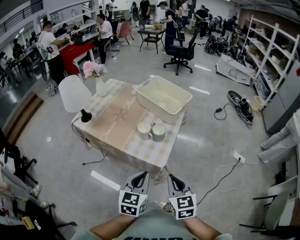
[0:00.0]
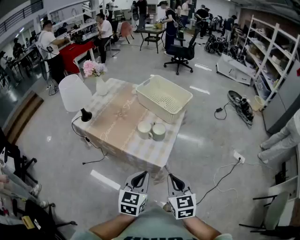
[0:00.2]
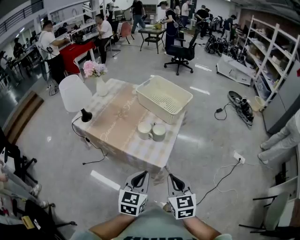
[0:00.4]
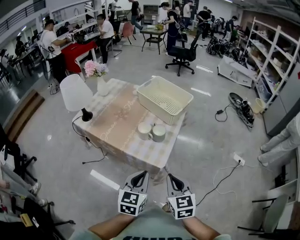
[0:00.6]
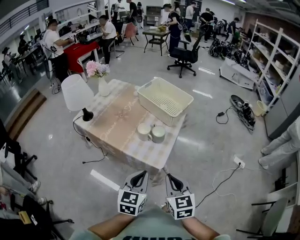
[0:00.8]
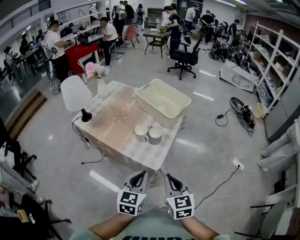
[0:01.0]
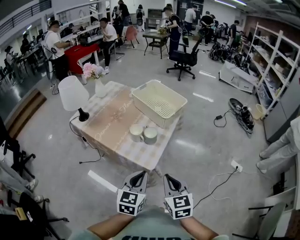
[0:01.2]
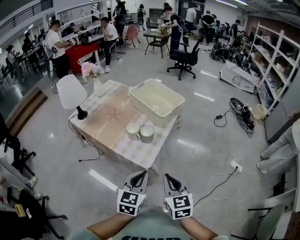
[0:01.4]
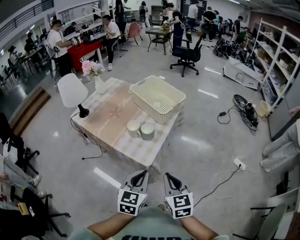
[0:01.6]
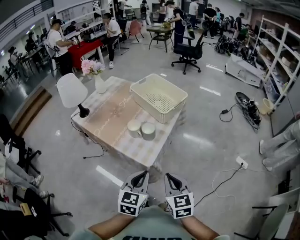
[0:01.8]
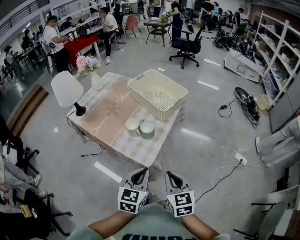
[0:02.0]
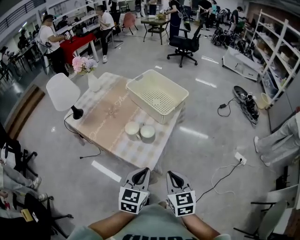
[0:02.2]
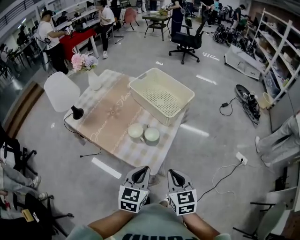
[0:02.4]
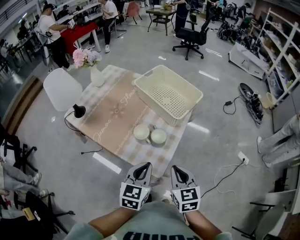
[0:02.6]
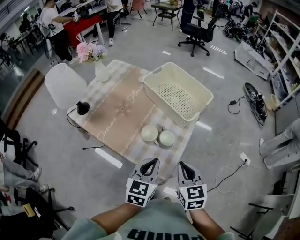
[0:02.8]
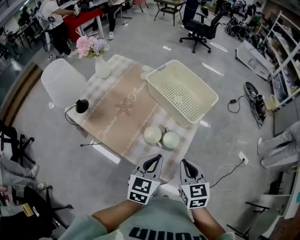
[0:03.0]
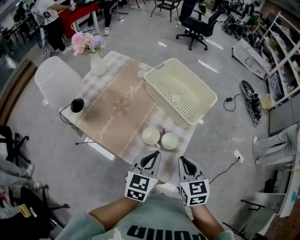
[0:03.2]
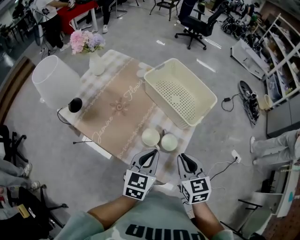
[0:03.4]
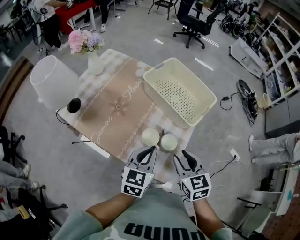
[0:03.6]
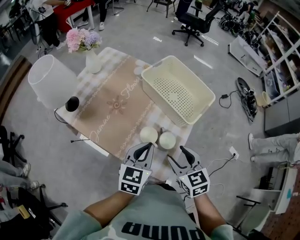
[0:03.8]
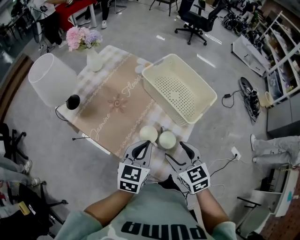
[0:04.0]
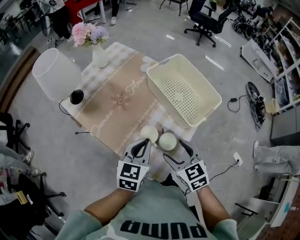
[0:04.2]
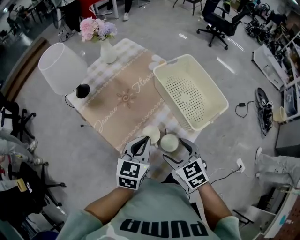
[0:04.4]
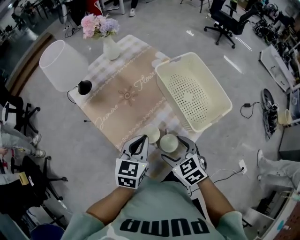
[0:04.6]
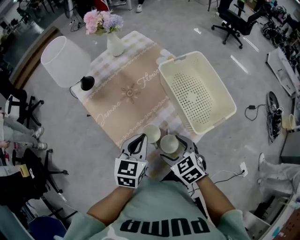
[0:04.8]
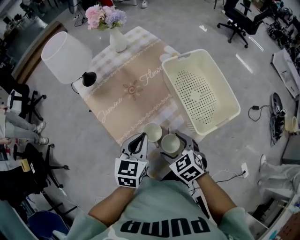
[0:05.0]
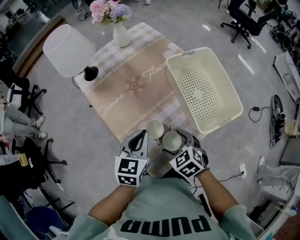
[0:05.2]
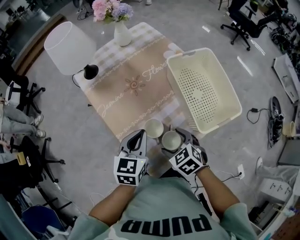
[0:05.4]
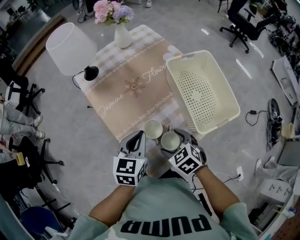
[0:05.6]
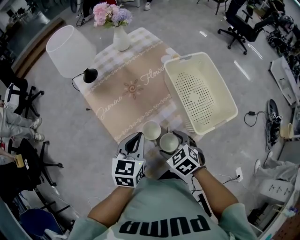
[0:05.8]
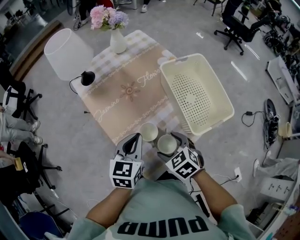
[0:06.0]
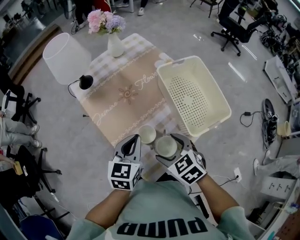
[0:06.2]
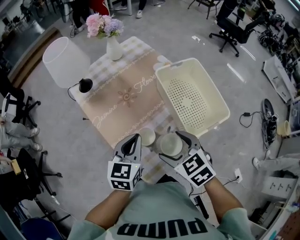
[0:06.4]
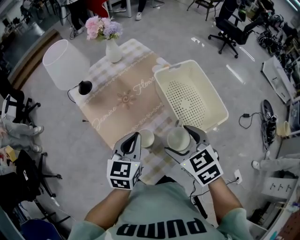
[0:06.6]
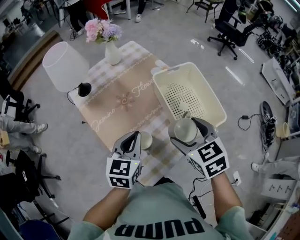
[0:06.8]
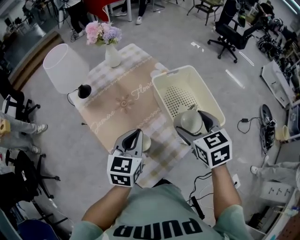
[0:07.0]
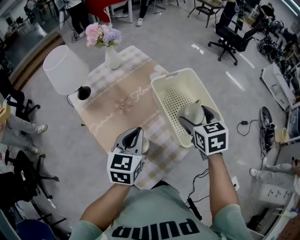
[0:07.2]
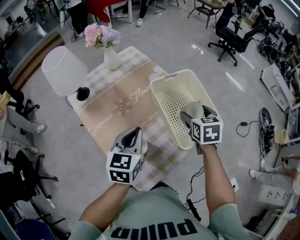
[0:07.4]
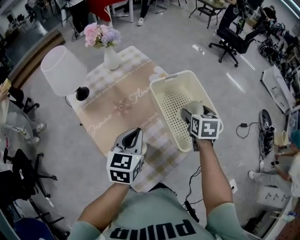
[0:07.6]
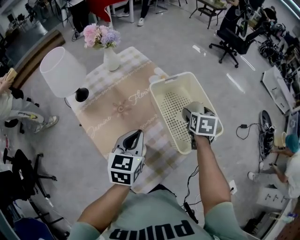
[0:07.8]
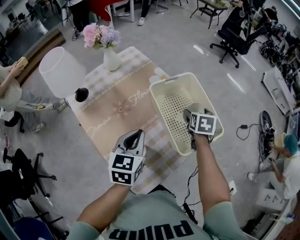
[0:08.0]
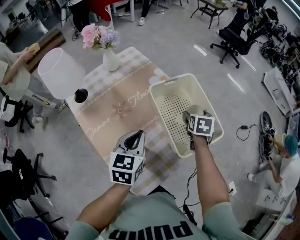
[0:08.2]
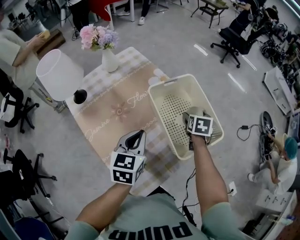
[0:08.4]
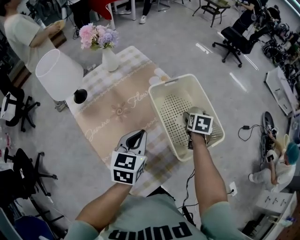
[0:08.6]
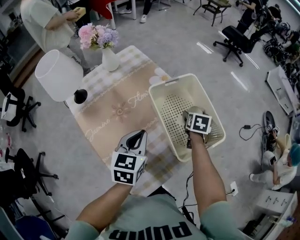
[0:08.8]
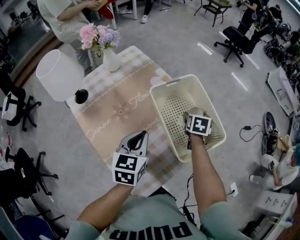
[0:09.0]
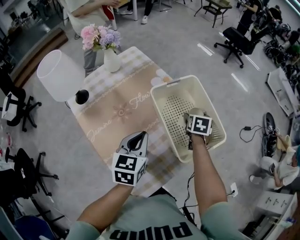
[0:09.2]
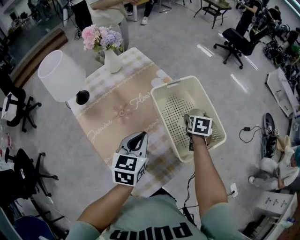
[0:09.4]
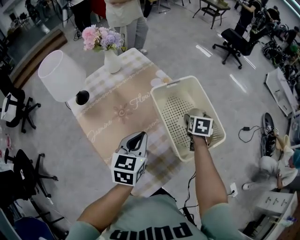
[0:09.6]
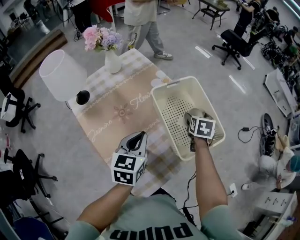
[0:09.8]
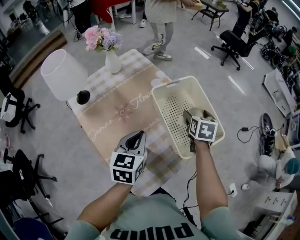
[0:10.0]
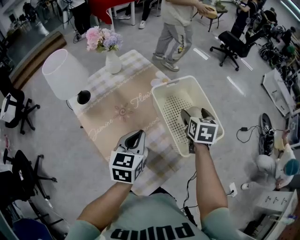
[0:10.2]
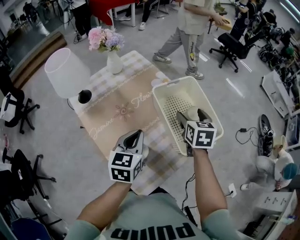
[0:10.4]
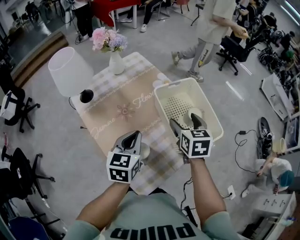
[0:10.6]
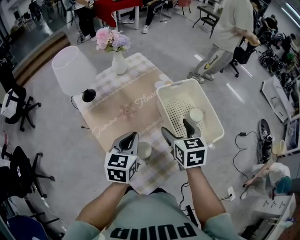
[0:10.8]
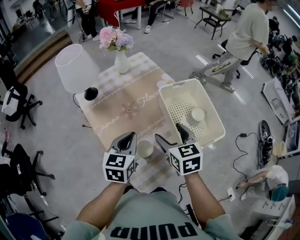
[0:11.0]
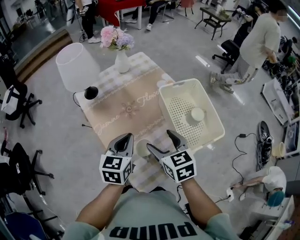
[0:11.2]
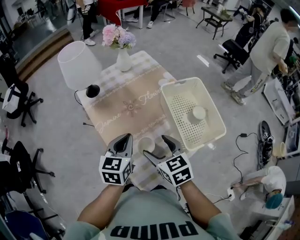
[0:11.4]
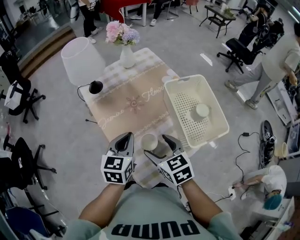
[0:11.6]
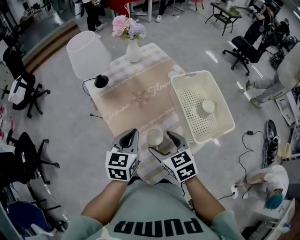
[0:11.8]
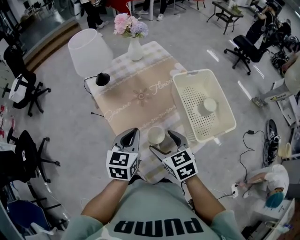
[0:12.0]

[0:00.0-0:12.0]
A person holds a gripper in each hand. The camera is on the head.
0:00.0 to 0:01.6: The two grippers go roughly 10 cm to the right.
0:01.6 to 0:03.0: The right gripper goes approximately 20 cm forward. Meanwhile the left gripper shifts roughly 20 cm forward and to the left.
0:03.0 to 0:04.4: The grippers both shift forward by roughly 10 cm. The right gripper swivels about 40 degrees, and opens.
0:04.4 to 0:06.0: The right gripper changes its angle by roughly 20 degrees.
0:06.0 to 0:07.6: The left gripper goes some 10 cm forward, to the right and upward, while the right gripper heads forward and to the right, covering roughly 30 cm, and rotates approximately 50 degrees.
0:07.6 to 0:09.0: The right gripper moves downward and forward, roughly 10 cm.
0:09.0 to 0:10.4: The right gripper is displaced upward, backward and to the left by some 15 cm, and rotates roughly 20 degrees.
0:10.4 to 0:12.0: The right gripper is displaced to the left and backward by some 25 cm, and rotates approximately 40 degrees, while the left gripper goes approximately 10 cm to the left and backward.

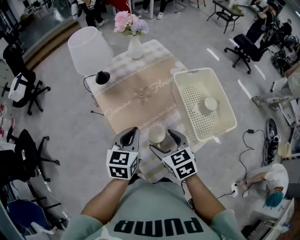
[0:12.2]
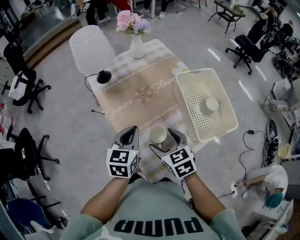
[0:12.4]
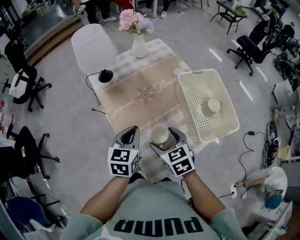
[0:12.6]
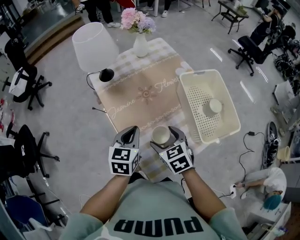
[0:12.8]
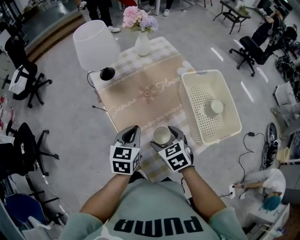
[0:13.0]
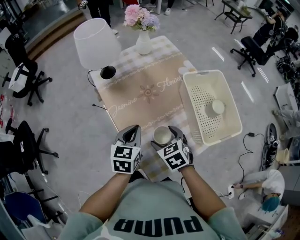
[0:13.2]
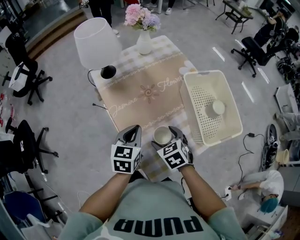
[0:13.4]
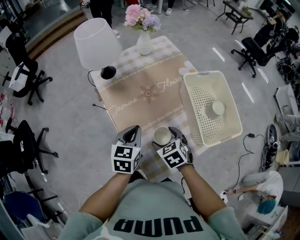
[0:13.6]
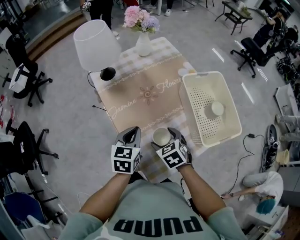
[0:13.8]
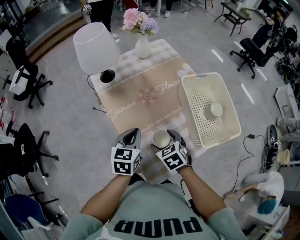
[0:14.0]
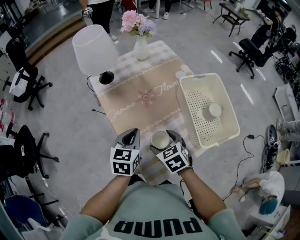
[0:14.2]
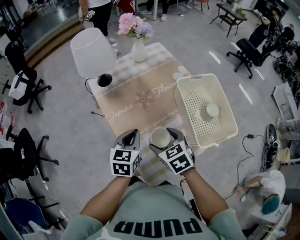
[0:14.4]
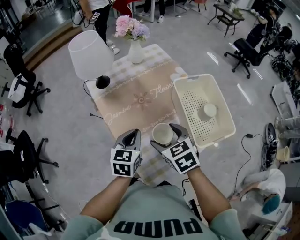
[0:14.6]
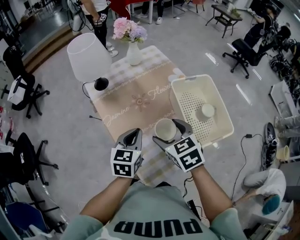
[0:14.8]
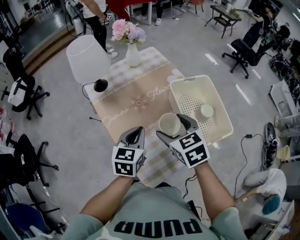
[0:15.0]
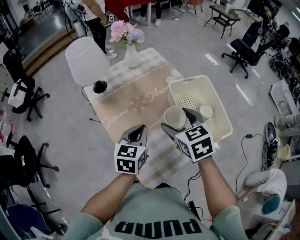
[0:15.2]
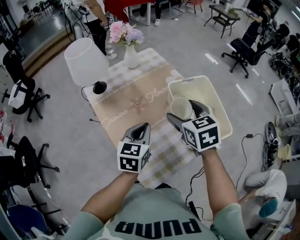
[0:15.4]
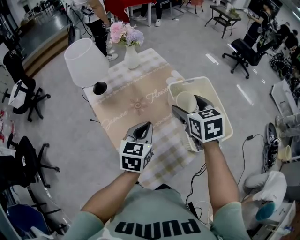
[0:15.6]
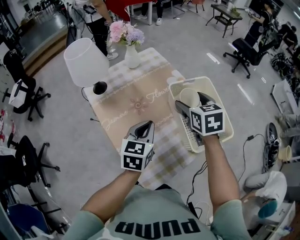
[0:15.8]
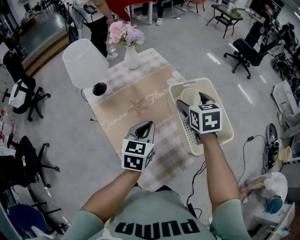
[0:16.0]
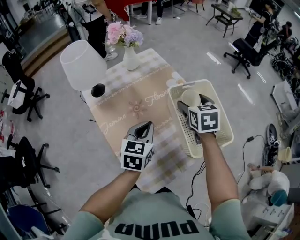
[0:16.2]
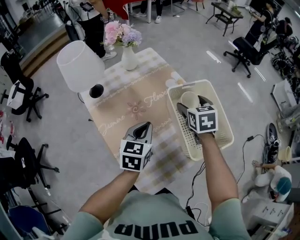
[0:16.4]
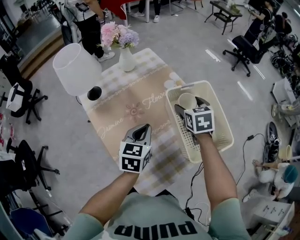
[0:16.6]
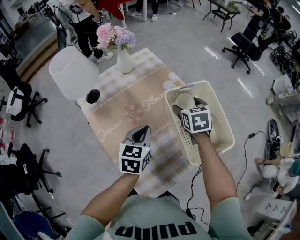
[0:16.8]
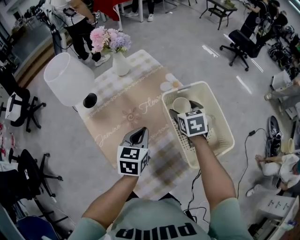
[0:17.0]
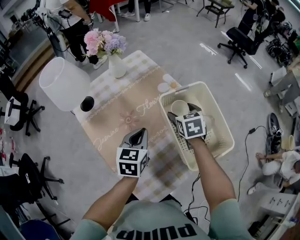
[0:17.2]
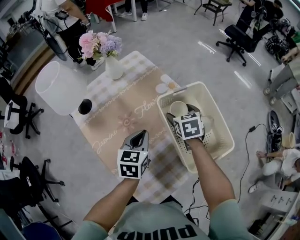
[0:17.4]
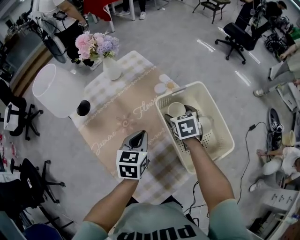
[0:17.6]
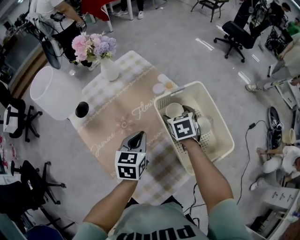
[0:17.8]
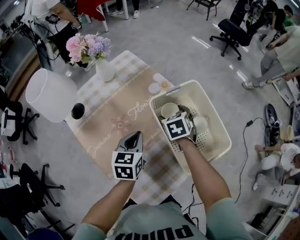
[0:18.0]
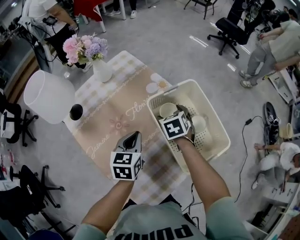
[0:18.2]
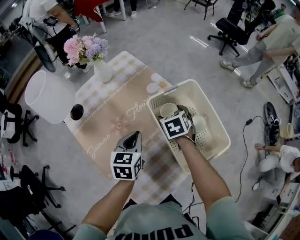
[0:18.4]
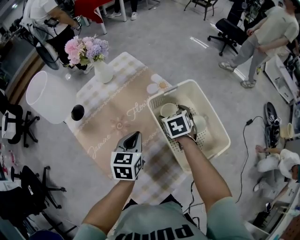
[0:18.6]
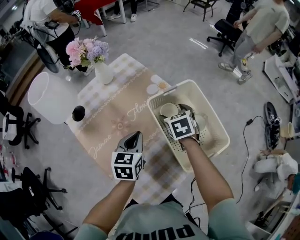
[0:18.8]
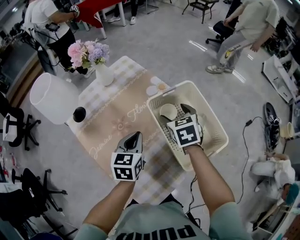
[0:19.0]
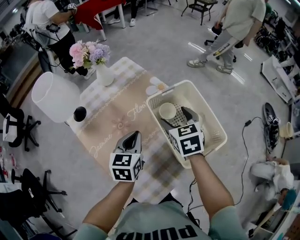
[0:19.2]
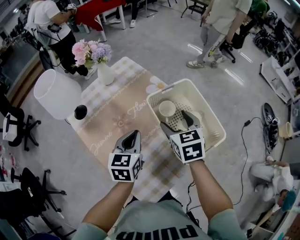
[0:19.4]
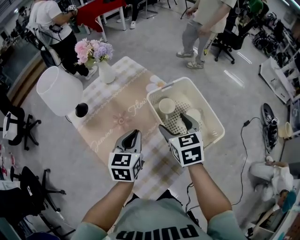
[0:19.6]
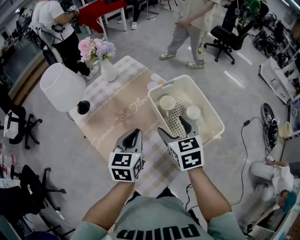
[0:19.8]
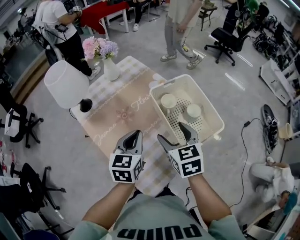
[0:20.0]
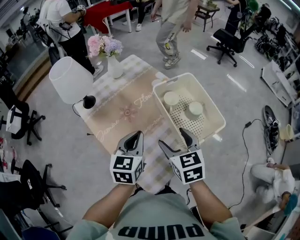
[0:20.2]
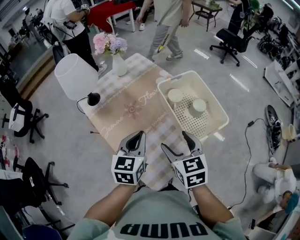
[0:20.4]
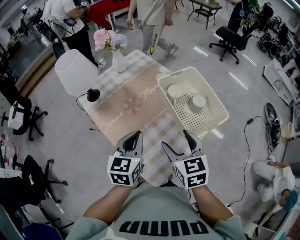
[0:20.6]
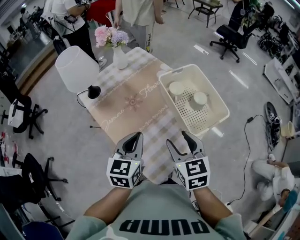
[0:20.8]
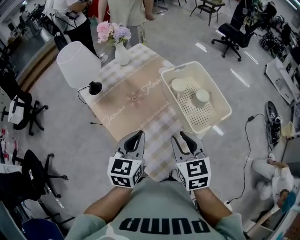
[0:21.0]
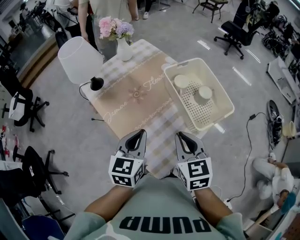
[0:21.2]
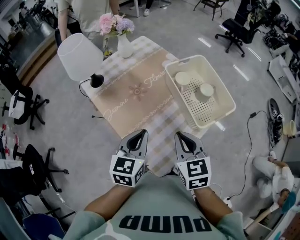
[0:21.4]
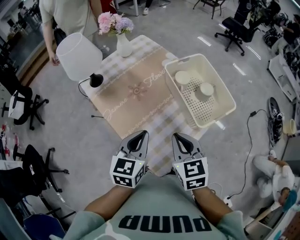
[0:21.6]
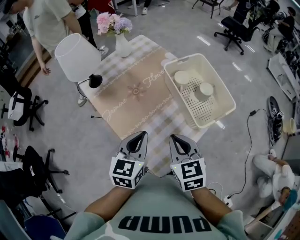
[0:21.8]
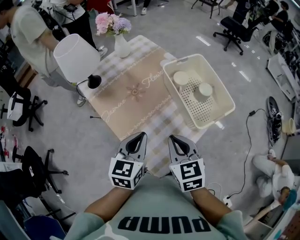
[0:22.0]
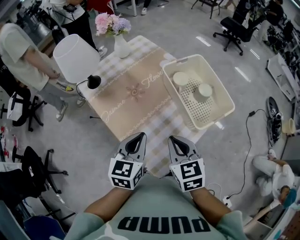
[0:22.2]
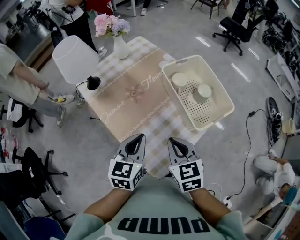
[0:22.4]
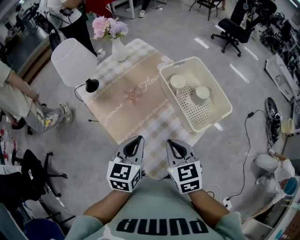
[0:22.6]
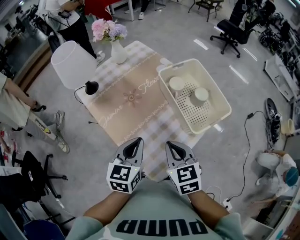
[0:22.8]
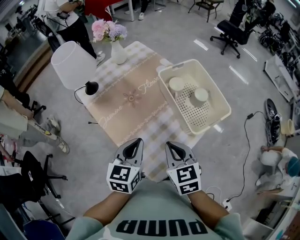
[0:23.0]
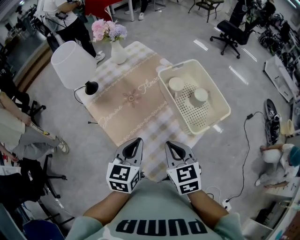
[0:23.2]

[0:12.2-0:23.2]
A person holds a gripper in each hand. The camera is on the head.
0:12.2 to 0:13.8: The right gripper is displaced downward by about 10 cm. The left gripper goes roughly 5 cm downward.
0:13.8 to 0:15.4: The right gripper travels upward, to the right and forward by approximately 25 cm, and rotates about 20 degrees; the left gripper shifts about 10 cm to the right and upward.
0:15.4 to 0:17.0: The left gripper moves forward, some 10 cm; the right gripper travels forward, downward and to the right by about 20 cm.
0:17.0 to 0:18.4: The right gripper goes about 5 cm downward.
0:18.4 to 0:20.0: The left gripper moves backward and upward, about 15 cm. Meanwhile the right gripper goes some 25 cm backward and upward, and swivels some 20 degrees.
0:20.0 to 0:21.6: The two grippers go about 10 cm backward. The right gripper closes its fingers.
0:21.6 to 0:23.2: There are only small adjustments of the grippers.

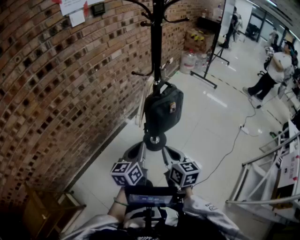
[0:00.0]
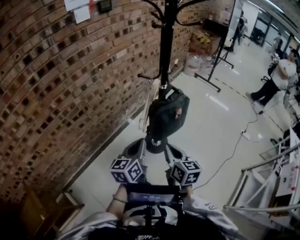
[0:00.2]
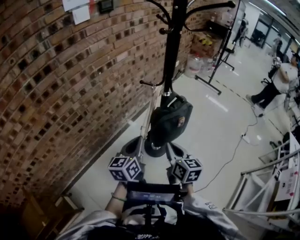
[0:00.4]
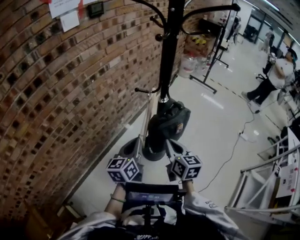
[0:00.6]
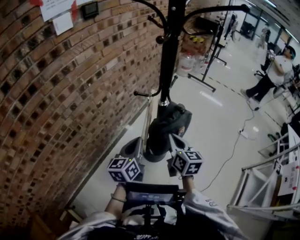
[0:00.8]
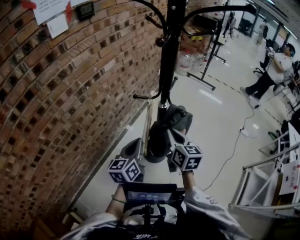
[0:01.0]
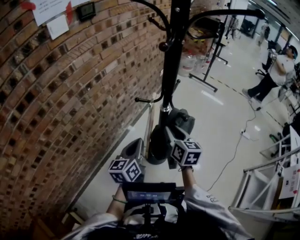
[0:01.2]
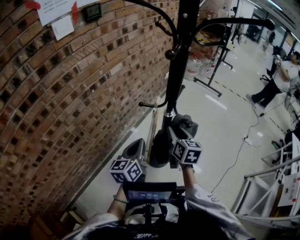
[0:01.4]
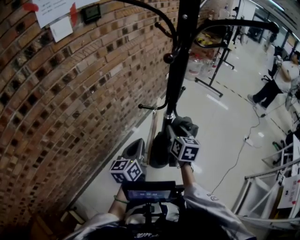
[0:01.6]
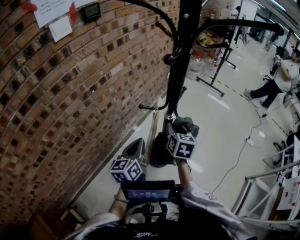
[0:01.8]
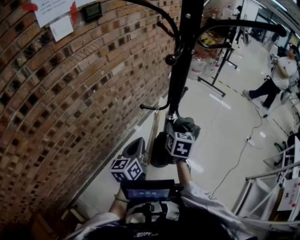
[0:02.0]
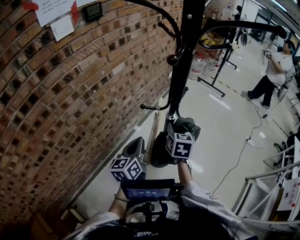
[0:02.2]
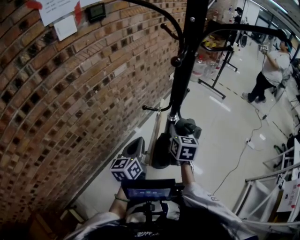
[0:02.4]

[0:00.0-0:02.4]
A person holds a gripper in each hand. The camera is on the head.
0:00.0 to 0:01.2: Both grippers move forward, some 25 cm. The right gripper opens.
0:01.2 to 0:02.4: The right gripper goes some 5 cm forward.
